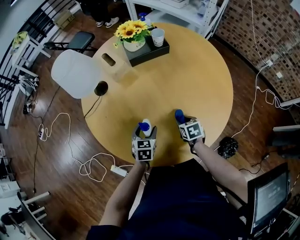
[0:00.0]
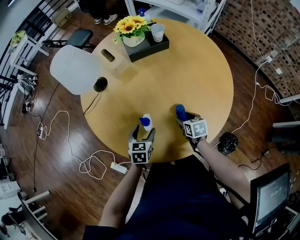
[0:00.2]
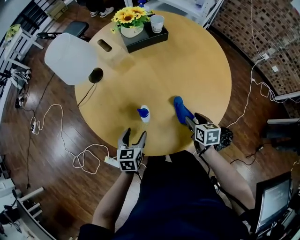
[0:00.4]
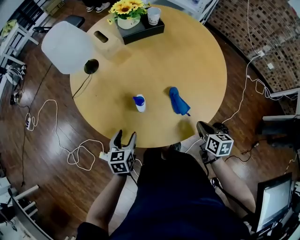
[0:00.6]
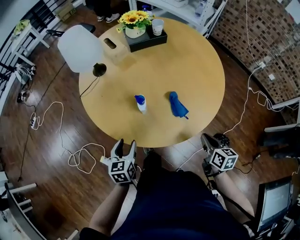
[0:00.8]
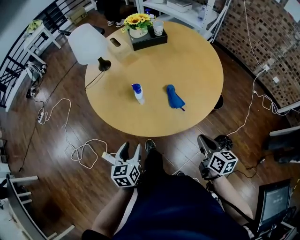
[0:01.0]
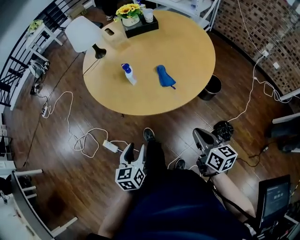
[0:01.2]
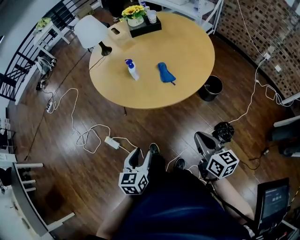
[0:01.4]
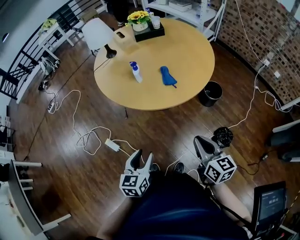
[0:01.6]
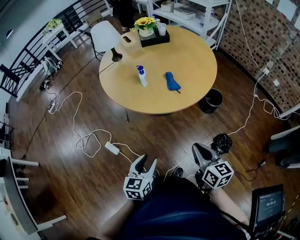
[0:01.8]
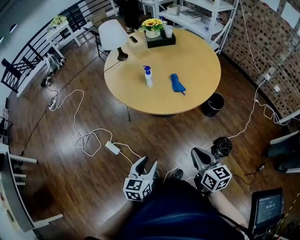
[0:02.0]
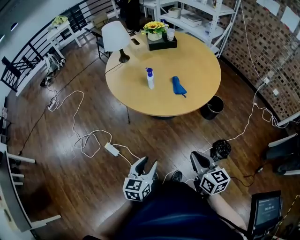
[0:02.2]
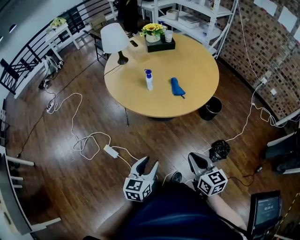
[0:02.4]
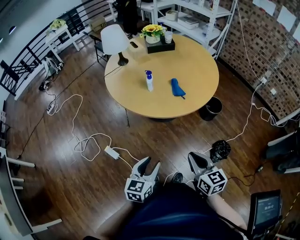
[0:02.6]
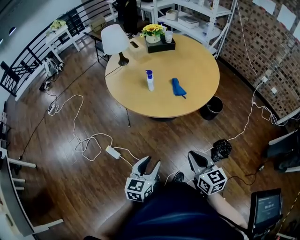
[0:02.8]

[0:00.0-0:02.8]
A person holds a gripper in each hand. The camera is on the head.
0:00.0 to 0:01.4: The left gripper travels backward by about 40 cm. The right gripper is displaced backward and upward by about 50 cm, angles its fingers upward, by some 40 degrees, and closes up.
0:01.4 to 0:02.8: The right gripper travels to the left and backward by roughly 10 cm.

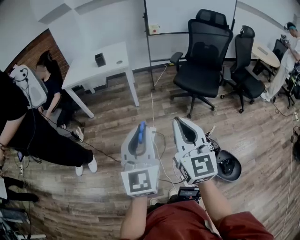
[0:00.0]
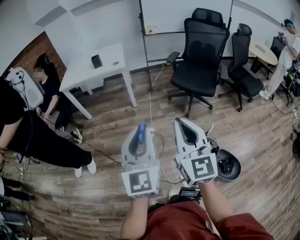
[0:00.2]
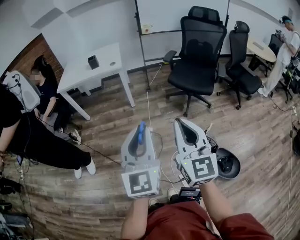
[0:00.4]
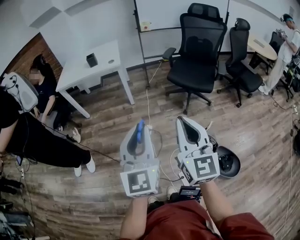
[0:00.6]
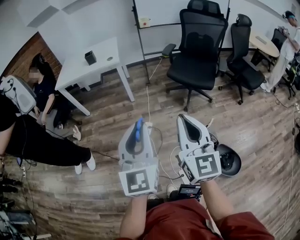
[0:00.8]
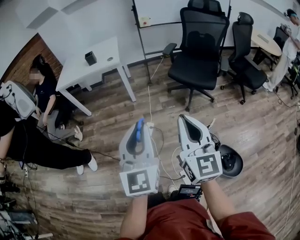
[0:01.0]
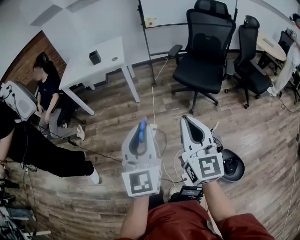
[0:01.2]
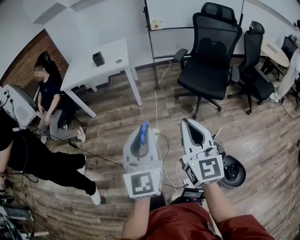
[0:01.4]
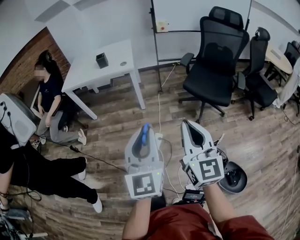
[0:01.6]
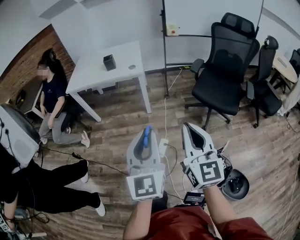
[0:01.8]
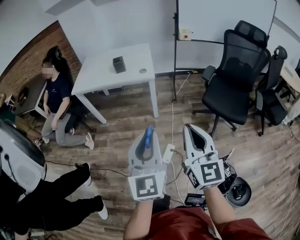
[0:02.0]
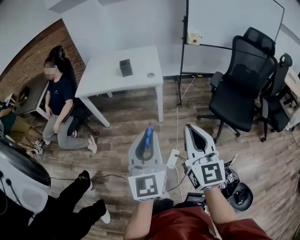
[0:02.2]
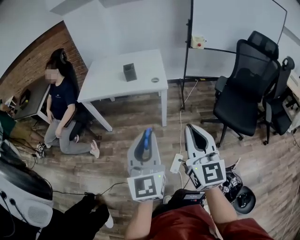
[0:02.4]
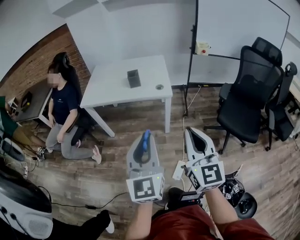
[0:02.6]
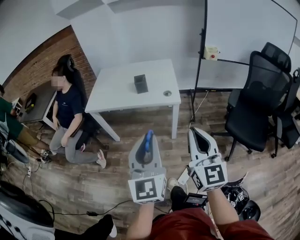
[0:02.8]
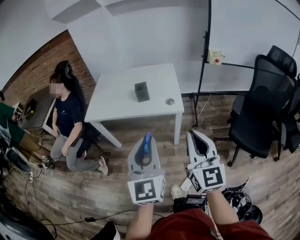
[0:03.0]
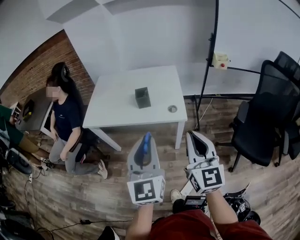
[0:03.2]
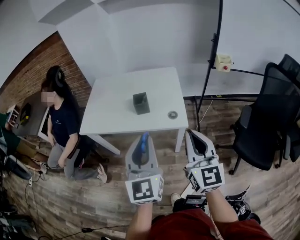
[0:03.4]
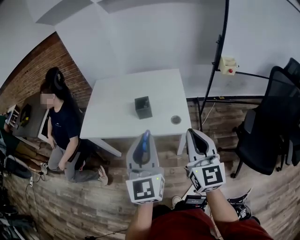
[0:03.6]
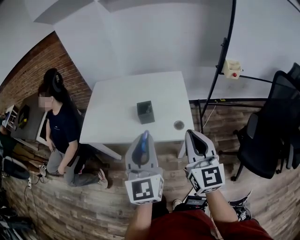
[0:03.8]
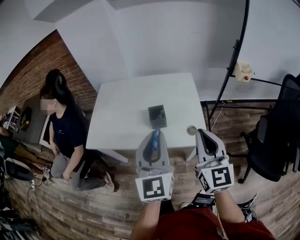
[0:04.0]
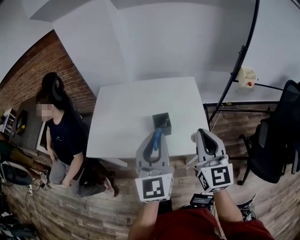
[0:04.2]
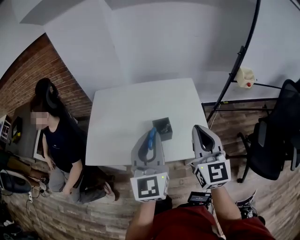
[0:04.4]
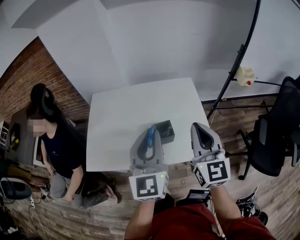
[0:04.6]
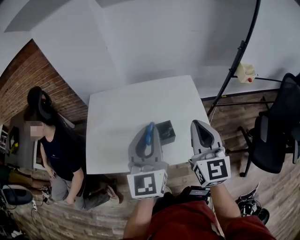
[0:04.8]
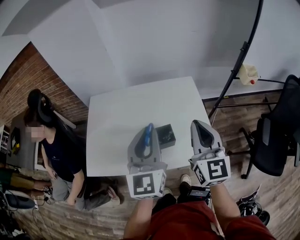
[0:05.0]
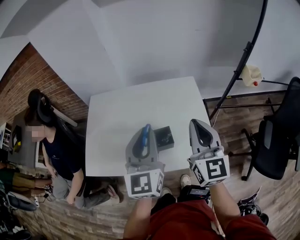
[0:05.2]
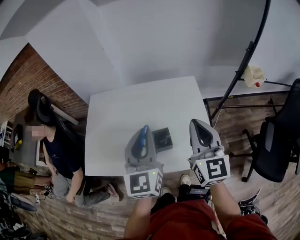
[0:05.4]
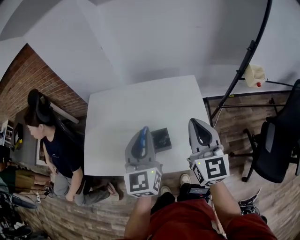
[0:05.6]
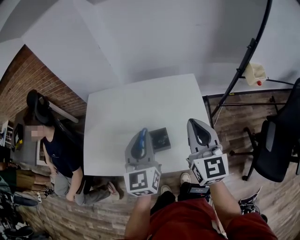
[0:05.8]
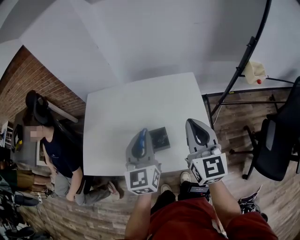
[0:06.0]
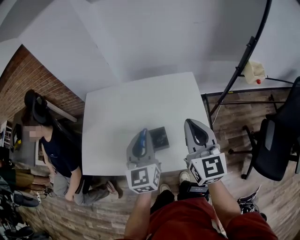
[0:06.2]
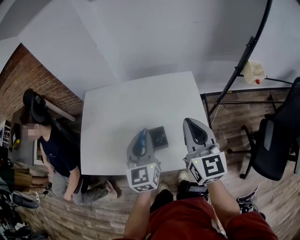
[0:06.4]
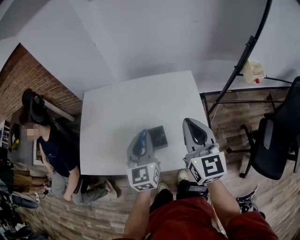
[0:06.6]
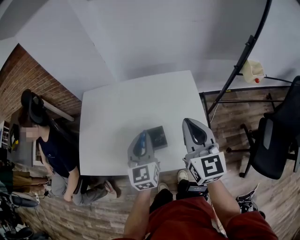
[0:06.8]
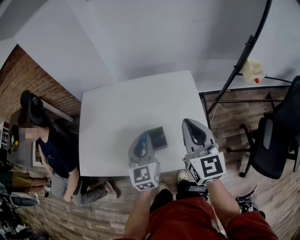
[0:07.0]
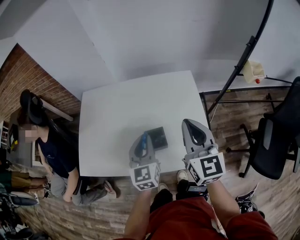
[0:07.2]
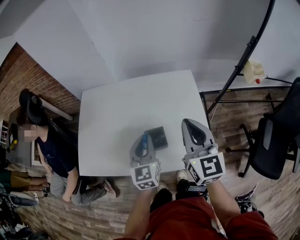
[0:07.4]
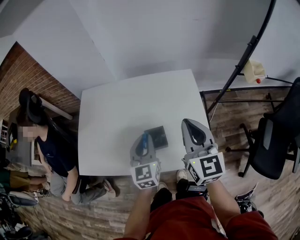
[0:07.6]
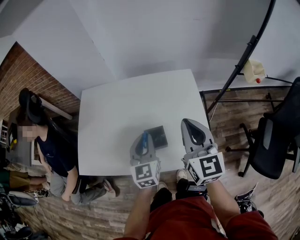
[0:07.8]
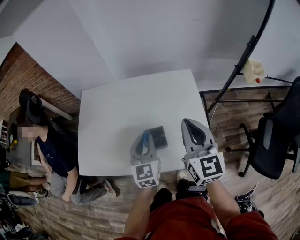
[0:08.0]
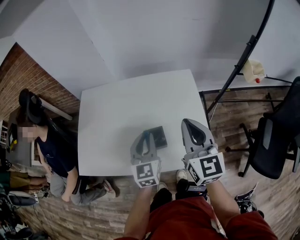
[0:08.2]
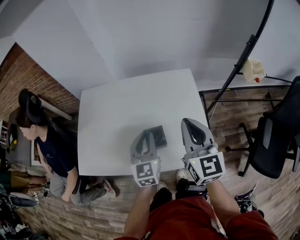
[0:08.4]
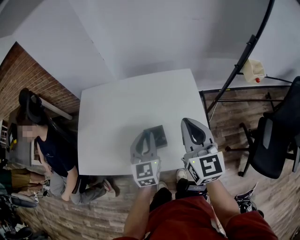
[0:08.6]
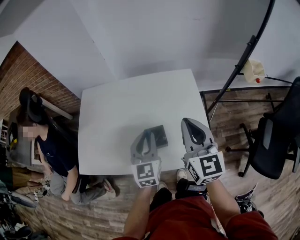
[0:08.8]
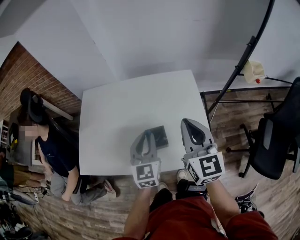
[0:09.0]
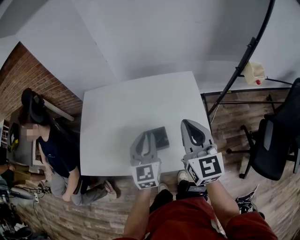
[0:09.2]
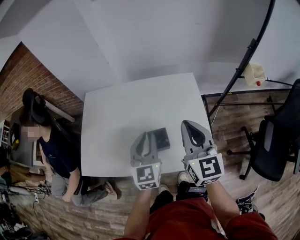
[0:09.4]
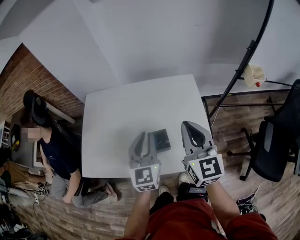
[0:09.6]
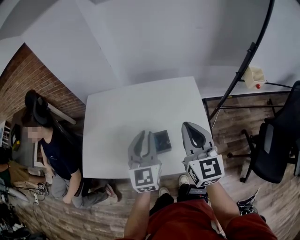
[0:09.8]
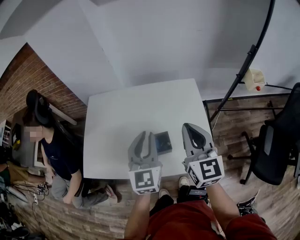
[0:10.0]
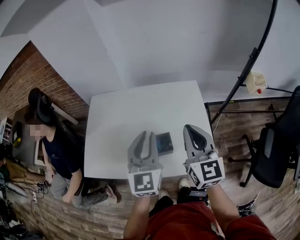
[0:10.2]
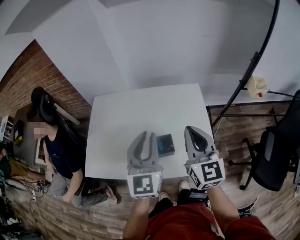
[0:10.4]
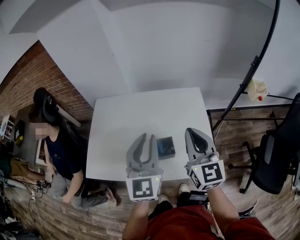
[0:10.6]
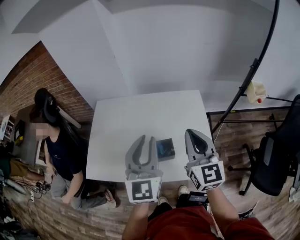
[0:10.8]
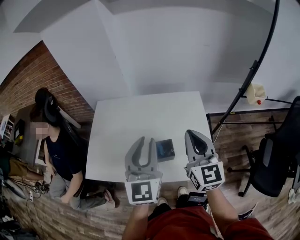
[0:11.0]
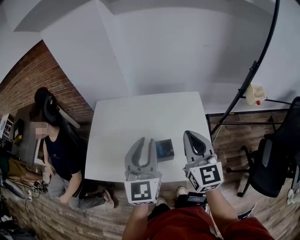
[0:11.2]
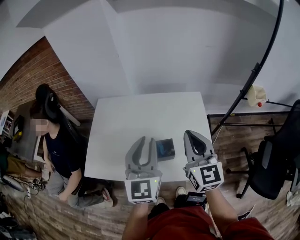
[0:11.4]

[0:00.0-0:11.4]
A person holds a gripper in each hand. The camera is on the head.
0:00.0 to 0:01.4: The right gripper travels forward and to the right by approximately 10 cm; the left gripper goes some 10 cm forward.
0:01.4 to 0:02.8: The pair of grippers is taken forward and to the left, about 50 cm.
0:02.8 to 0:04.2: The two grippers travel together, forward, roughly 40 cm.
0:04.2 to 0:05.6: The grippers both shift forward by about 15 cm.
0:05.6 to 0:07.2: The left gripper is displaced downward by about 10 cm.
0:07.2 to 0:08.6: The grippers make only small movements.
0:08.6 to 0:10.0: The left gripper travels upward by roughly 10 cm.
0:10.0 to 0:11.4: The left gripper goes roughly 5 cm upward.

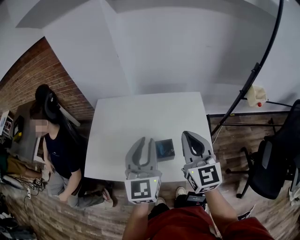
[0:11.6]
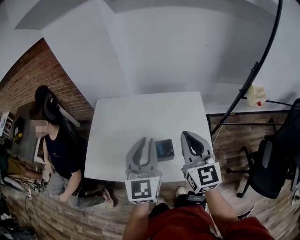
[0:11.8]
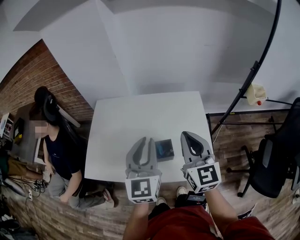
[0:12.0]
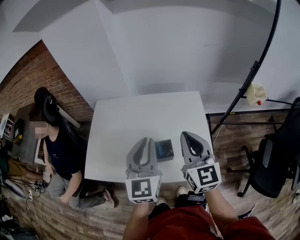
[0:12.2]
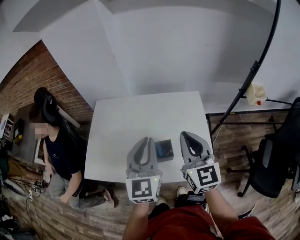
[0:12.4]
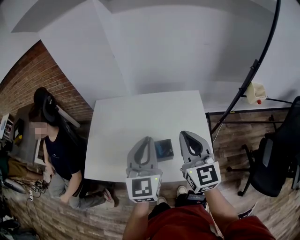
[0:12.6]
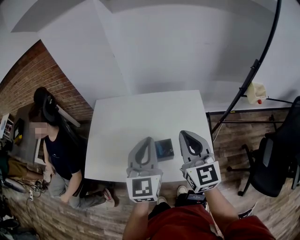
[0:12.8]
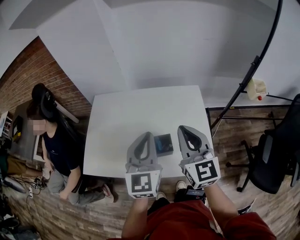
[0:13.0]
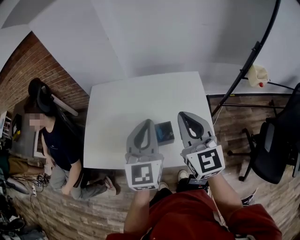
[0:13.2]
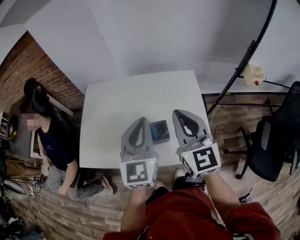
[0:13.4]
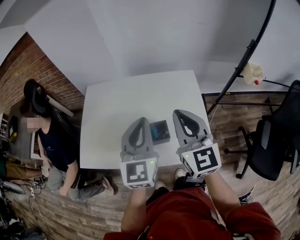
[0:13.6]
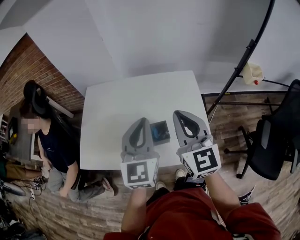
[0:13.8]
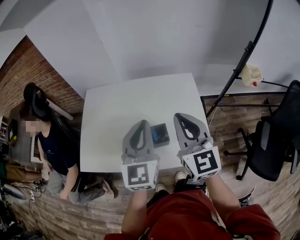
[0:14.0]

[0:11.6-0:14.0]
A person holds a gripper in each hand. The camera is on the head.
0:11.6 to 0:12.8: There are only small adjustments of the grippers.
0:12.8 to 0:14.0: The two grippers keep their place.

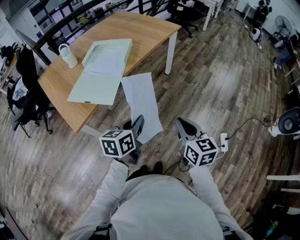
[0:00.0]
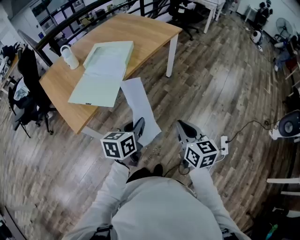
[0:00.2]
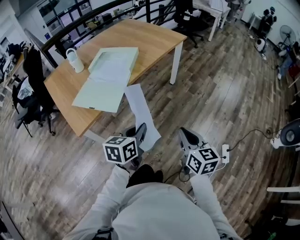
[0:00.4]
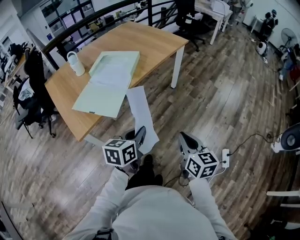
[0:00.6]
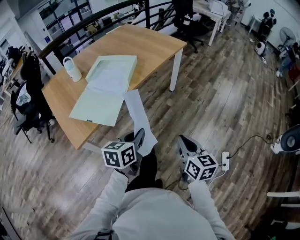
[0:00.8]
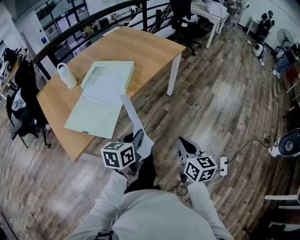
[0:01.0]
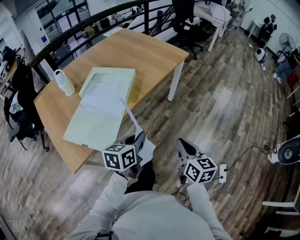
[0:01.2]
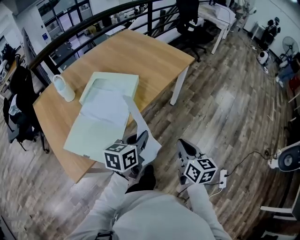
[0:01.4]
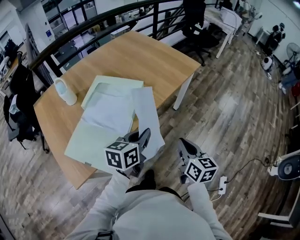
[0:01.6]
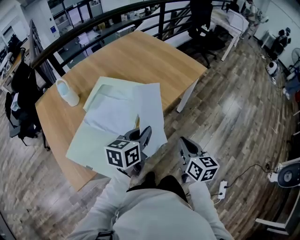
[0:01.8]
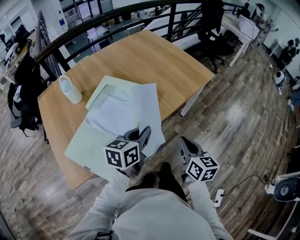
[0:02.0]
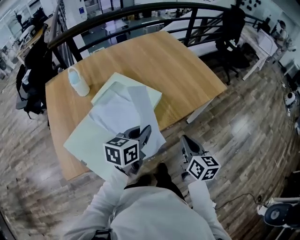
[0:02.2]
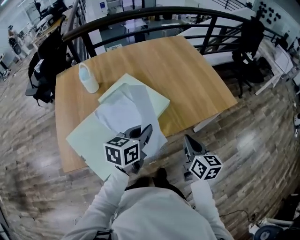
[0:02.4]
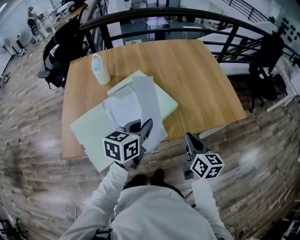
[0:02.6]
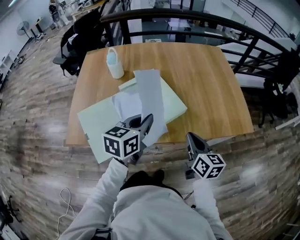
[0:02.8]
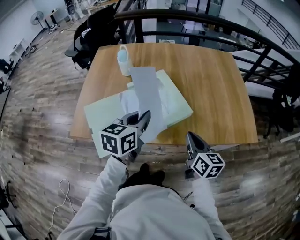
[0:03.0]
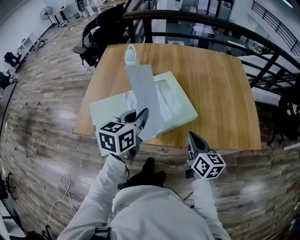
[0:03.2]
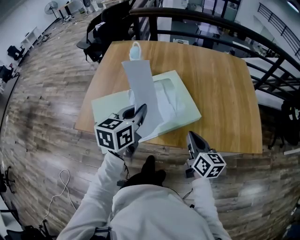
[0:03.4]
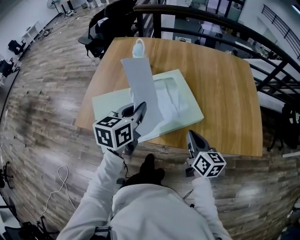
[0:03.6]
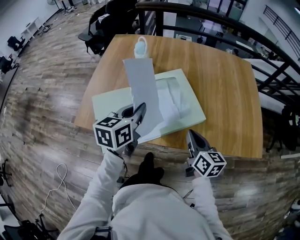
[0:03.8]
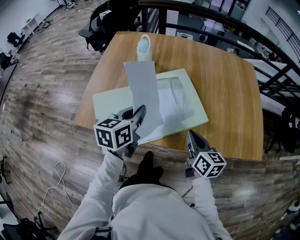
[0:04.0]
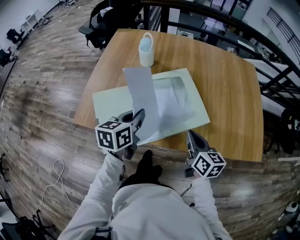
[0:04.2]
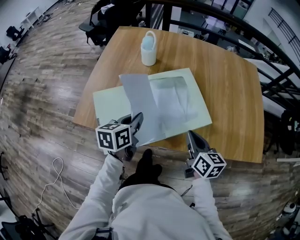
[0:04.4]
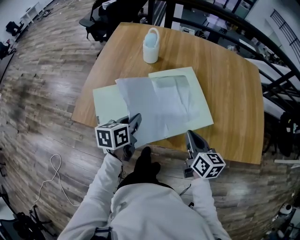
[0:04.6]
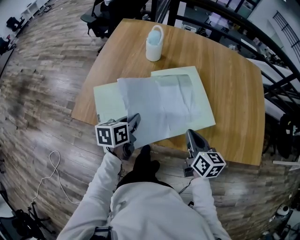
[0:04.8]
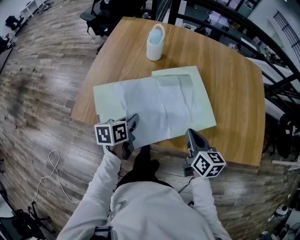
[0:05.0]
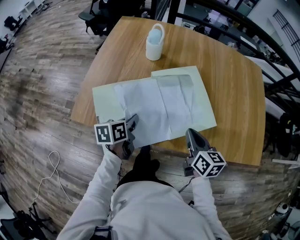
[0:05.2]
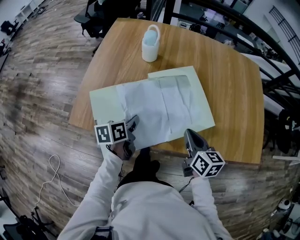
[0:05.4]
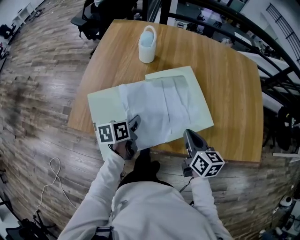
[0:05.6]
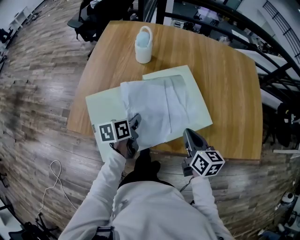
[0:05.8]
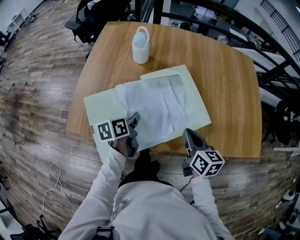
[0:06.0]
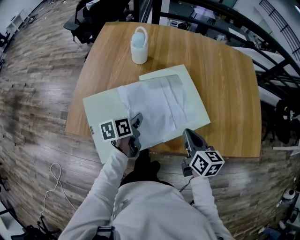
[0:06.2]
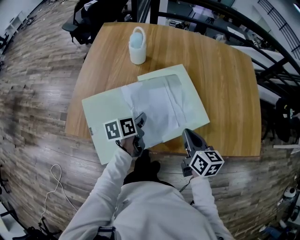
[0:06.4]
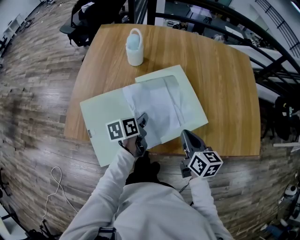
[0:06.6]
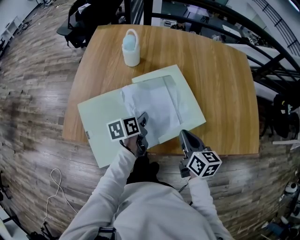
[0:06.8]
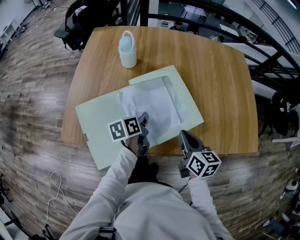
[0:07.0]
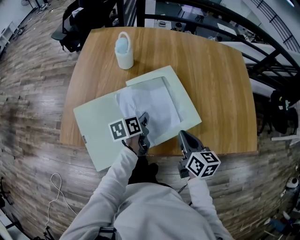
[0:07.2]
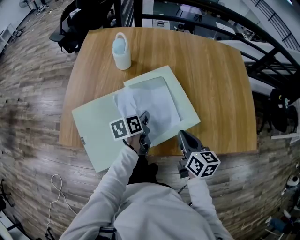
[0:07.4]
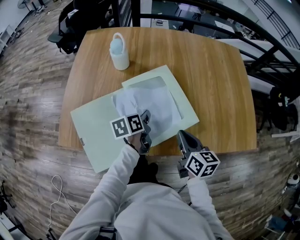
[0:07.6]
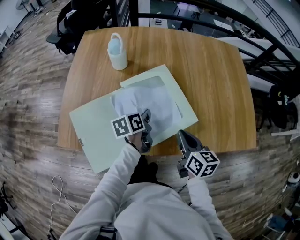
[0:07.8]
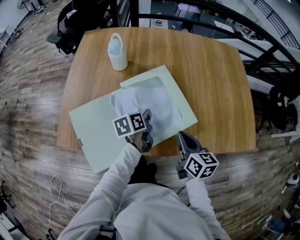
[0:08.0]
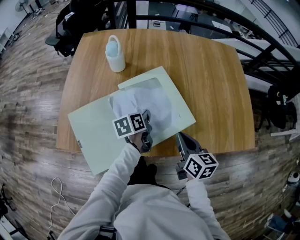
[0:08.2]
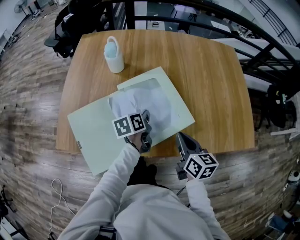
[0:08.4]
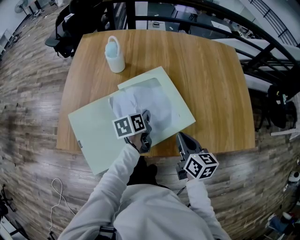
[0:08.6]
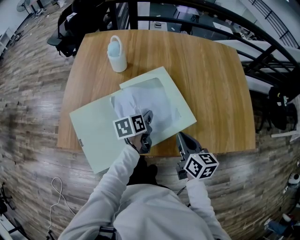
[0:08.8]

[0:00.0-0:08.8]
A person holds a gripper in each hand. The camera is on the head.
0:00.0 to 0:01.4: The two grippers go about 25 cm forward.
0:01.4 to 0:03.0: The right gripper ends up some 35 cm from where it was, and changes its angle by some 50 degrees. The left gripper changes place by approximately 25 cm, and turns by approximately 50 degrees.
0:03.0 to 0:04.4: The right gripper shifts about 10 cm to the left and forward; the left gripper shifts roughly 15 cm to the left and downward, and swivels about 20 degrees.
0:04.4 to 0:05.8: The left gripper heads downward, covering roughly 10 cm.
0:05.8 to 0:07.4: The left gripper travels to the right and forward by roughly 10 cm.
0:07.4 to 0:08.8: The left gripper opens its fingers.
